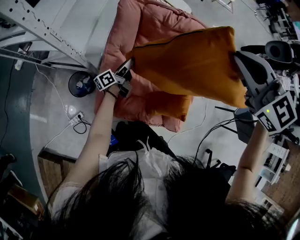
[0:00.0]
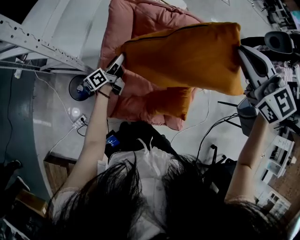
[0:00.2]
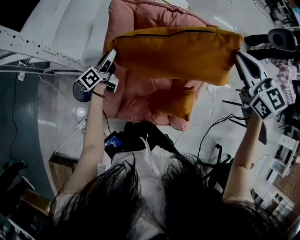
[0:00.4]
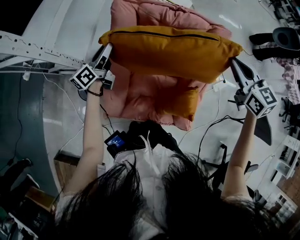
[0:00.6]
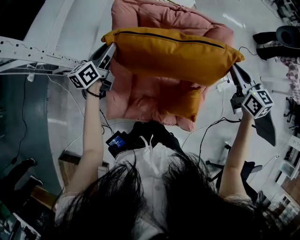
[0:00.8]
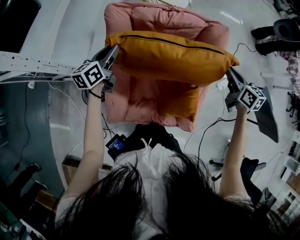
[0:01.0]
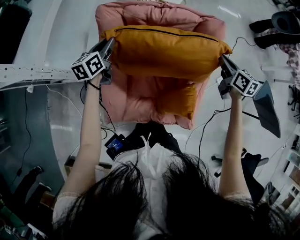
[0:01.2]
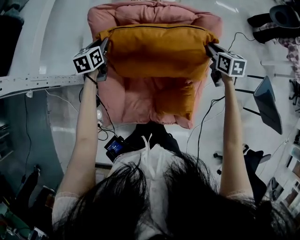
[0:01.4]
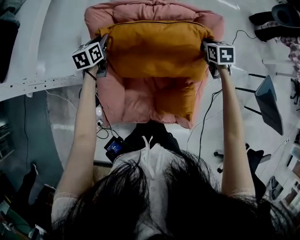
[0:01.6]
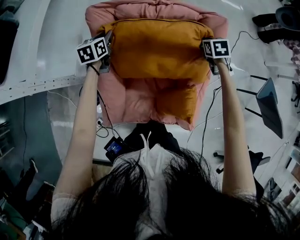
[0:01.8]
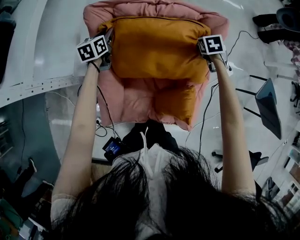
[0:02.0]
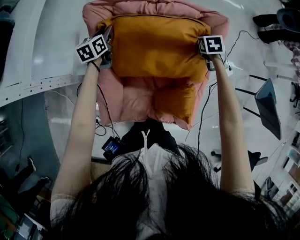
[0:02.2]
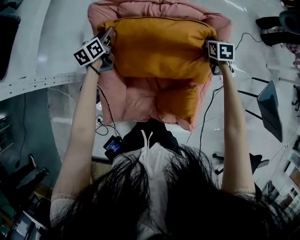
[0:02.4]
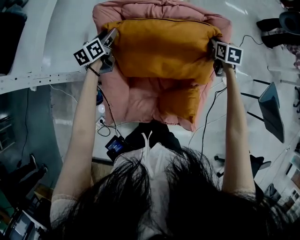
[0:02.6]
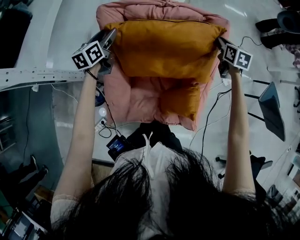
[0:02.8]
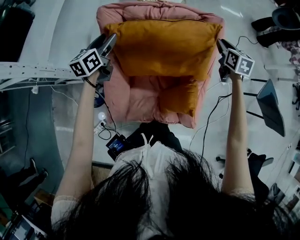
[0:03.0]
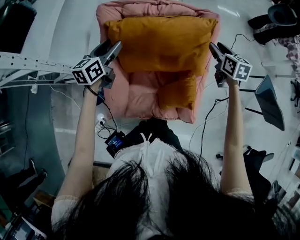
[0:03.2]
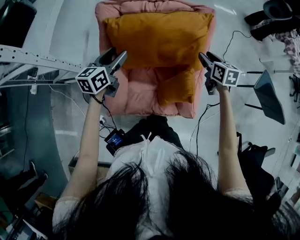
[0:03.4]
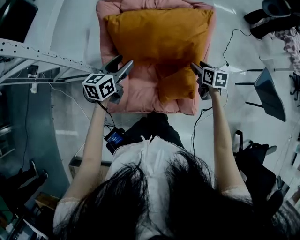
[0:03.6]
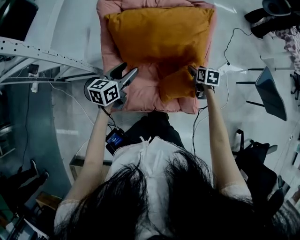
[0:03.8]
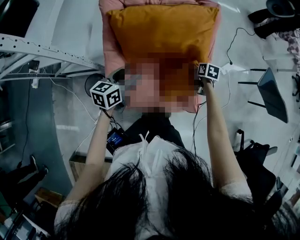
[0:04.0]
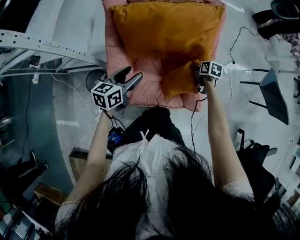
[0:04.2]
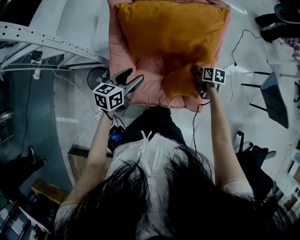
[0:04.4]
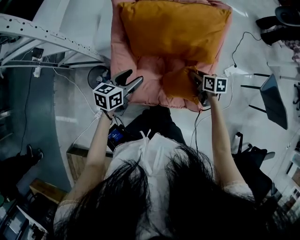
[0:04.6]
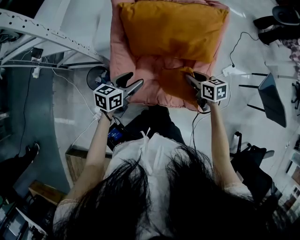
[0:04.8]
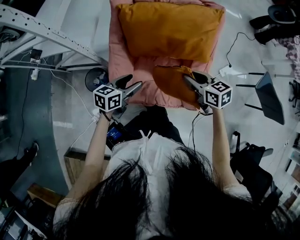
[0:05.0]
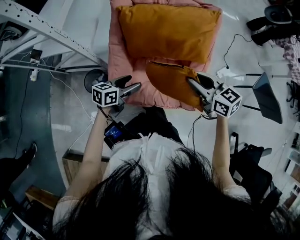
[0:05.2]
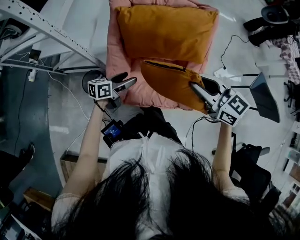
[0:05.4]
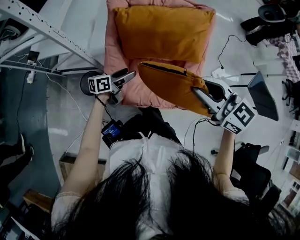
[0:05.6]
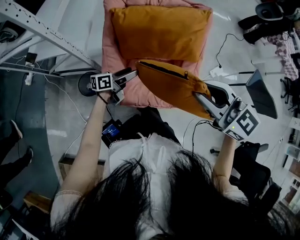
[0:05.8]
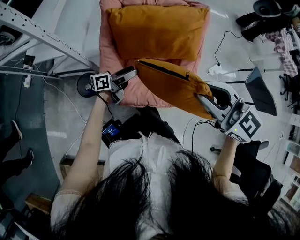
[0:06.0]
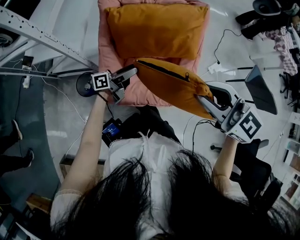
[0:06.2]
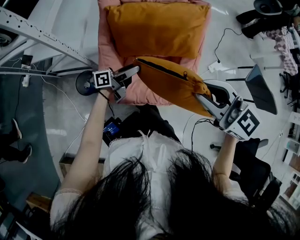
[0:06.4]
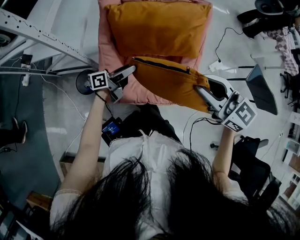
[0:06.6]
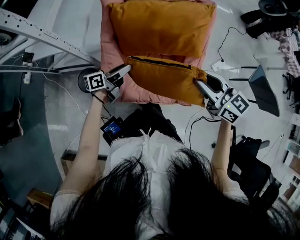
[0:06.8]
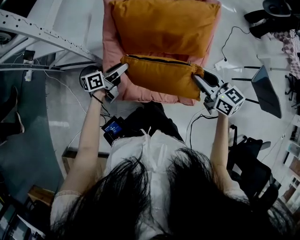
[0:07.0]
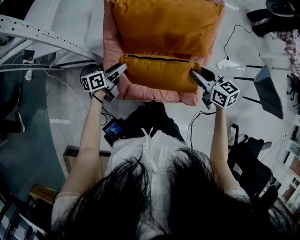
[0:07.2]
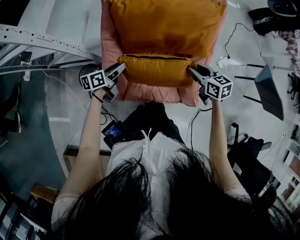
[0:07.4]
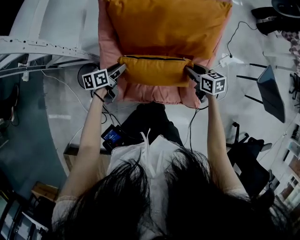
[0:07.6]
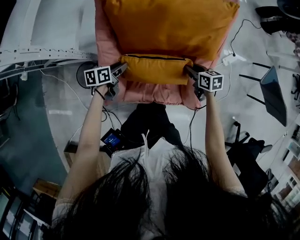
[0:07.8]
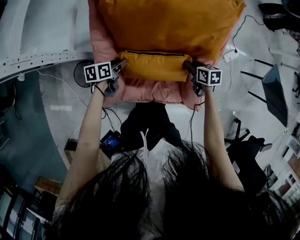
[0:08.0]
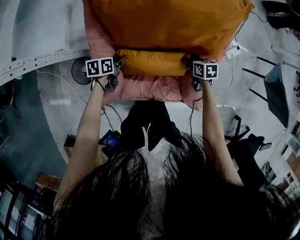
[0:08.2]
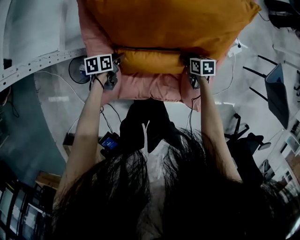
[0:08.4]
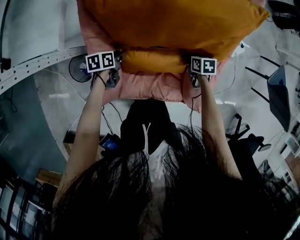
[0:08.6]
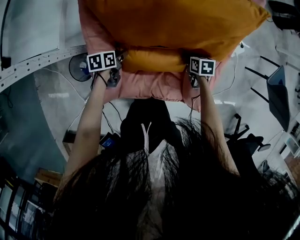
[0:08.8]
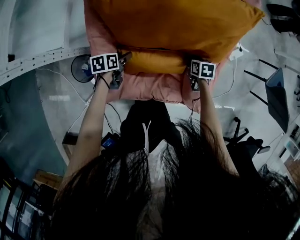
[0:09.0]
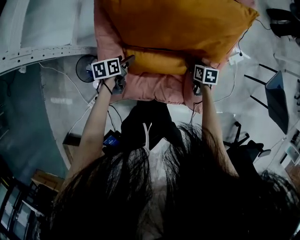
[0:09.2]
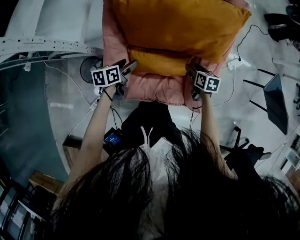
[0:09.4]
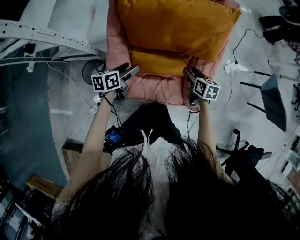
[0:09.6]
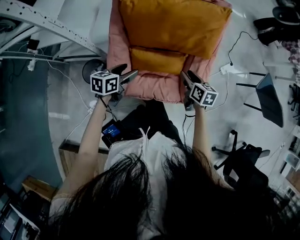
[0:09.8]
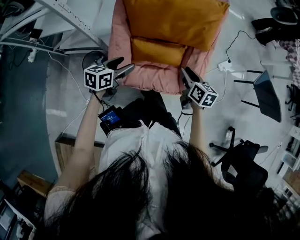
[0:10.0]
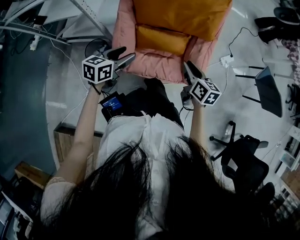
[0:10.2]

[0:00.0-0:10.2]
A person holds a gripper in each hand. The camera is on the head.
0:00.0 to 0:01.4: The right gripper goes approximately 40 cm downward and to the right, and rotates around the line of its fingers by approximately 50 degrees, clockwise from behind. The left gripper heads forward and upward, covering roughly 15 cm, and twists about 50 degrees clockwise, seen from behind.
0:01.4 to 0:03.0: The left gripper shifts approximately 5 cm upward, and opens up. Meanwhile the right gripper goes downward and returns, roughly 10 cm each way.
0:03.0 to 0:04.4: The right gripper goes approximately 30 cm backward and downward, rotates about 30 degrees, and opens, then closes again. The left gripper is displaced backward and to the right by approximately 25 cm, and swivels about 20 degrees.
0:04.4 to 0:05.8: The right gripper travels upward by approximately 40 cm, and points its fingers approximately 40 degrees further upward. The left gripper changes its angle by approximately 30 degrees.
0:05.8 to 0:07.2: The left gripper moves to the left, some 5 cm, and closes its fingers. Meanwhile the right gripper shifts about 25 cm downward and forward, and swivels approximately 30 degrees.
0:07.2 to 0:08.8: The left gripper heads downward and forward, covering approximately 20 cm, and angles its fingers downward, by roughly 30 degrees. Meanwhile the right gripper goes roughly 30 cm downward, and tilts its fingers some 30 degrees downward.
0:08.8 to 0:10.2: Both grippers move upward and backward, approximately 35 cm. The right gripper angles its fingers upward, by roughly 40 degrees, while the left gripper changes its angle by approximately 40 degrees.

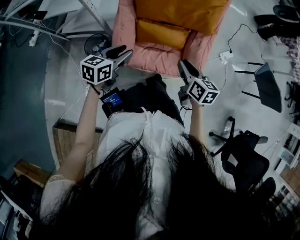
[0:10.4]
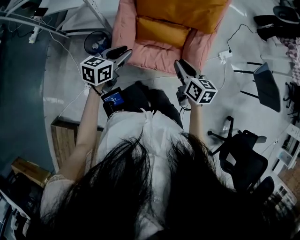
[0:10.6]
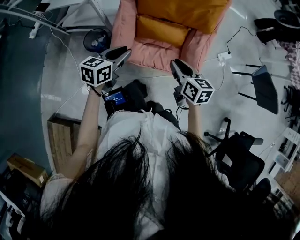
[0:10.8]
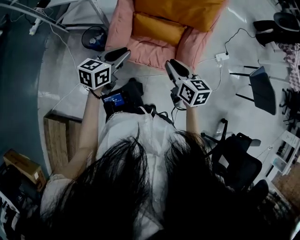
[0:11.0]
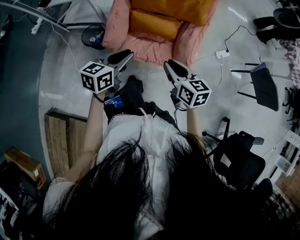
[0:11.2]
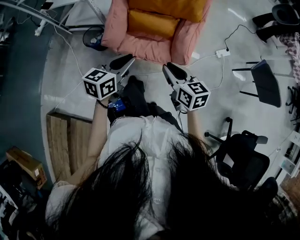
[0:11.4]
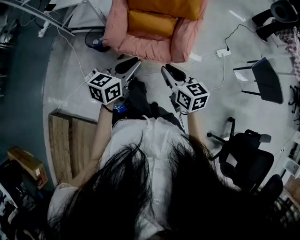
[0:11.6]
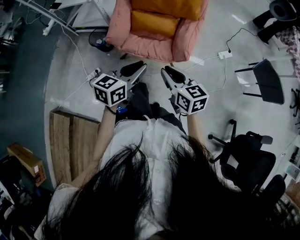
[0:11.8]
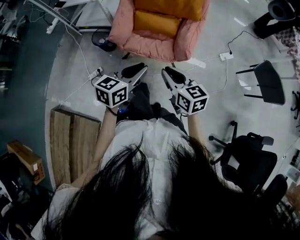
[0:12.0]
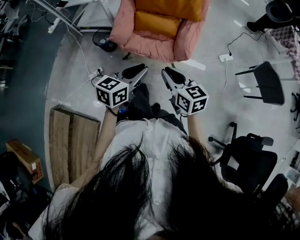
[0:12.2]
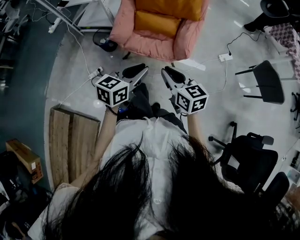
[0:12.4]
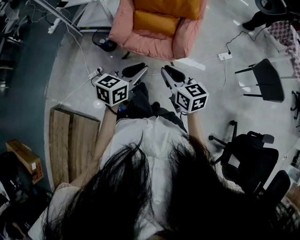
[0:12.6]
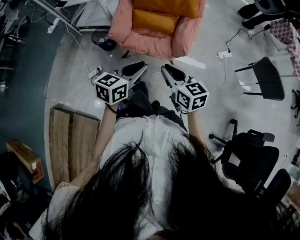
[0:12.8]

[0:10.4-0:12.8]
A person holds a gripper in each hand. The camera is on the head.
0:10.4 to 0:11.6: The left gripper travels backward and to the right by approximately 25 cm. Meanwhile the right gripper goes about 20 cm backward, and swivels approximately 20 degrees.
0:11.6 to 0:12.8: Both grippers travel together backward, about 10 cm.

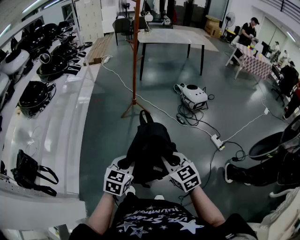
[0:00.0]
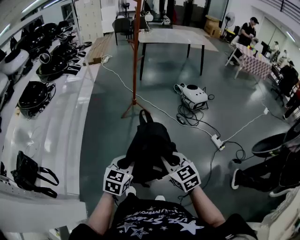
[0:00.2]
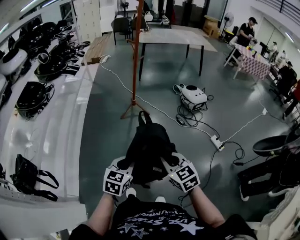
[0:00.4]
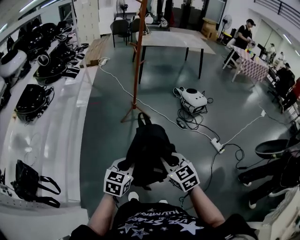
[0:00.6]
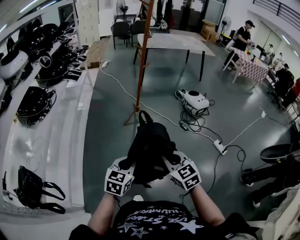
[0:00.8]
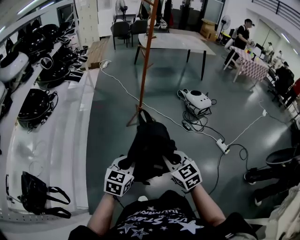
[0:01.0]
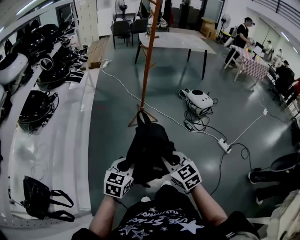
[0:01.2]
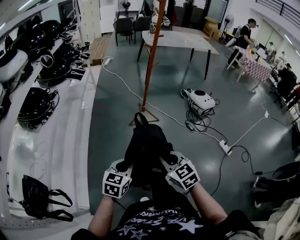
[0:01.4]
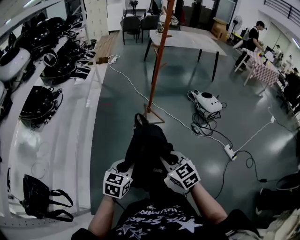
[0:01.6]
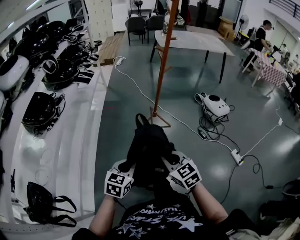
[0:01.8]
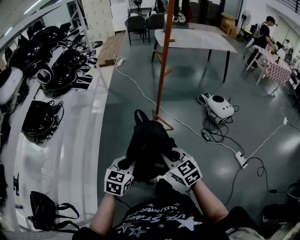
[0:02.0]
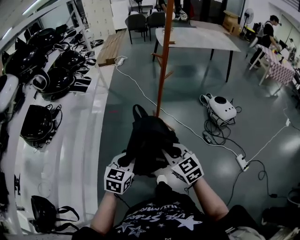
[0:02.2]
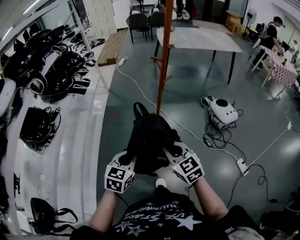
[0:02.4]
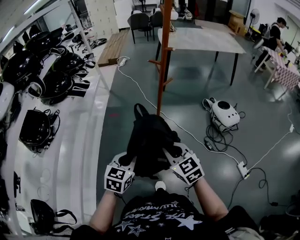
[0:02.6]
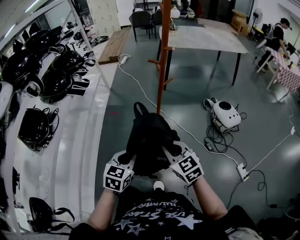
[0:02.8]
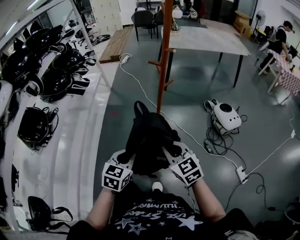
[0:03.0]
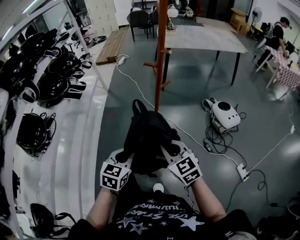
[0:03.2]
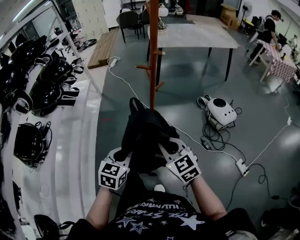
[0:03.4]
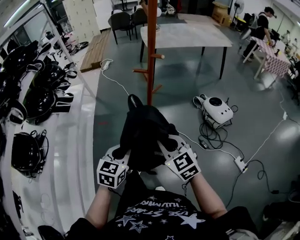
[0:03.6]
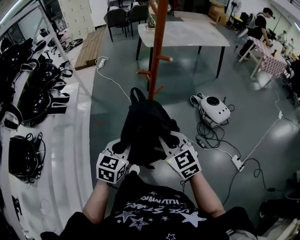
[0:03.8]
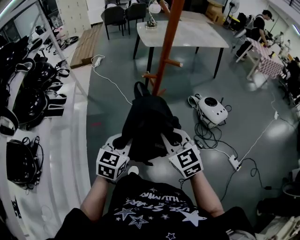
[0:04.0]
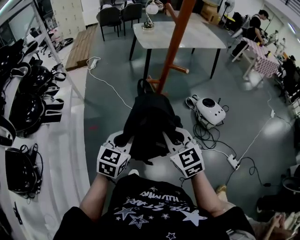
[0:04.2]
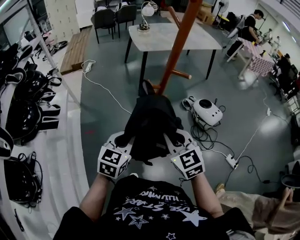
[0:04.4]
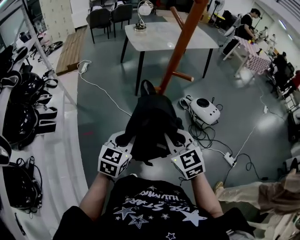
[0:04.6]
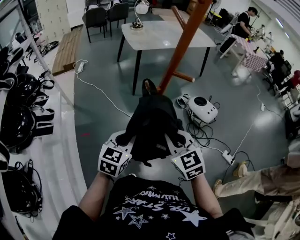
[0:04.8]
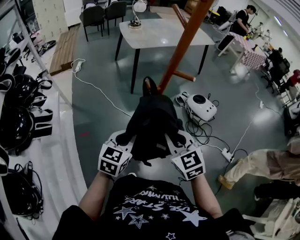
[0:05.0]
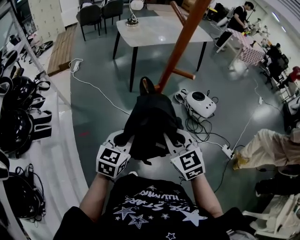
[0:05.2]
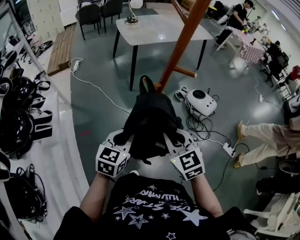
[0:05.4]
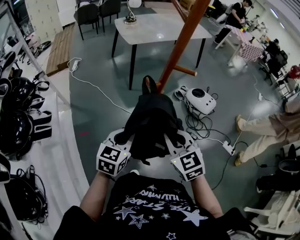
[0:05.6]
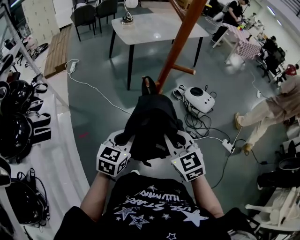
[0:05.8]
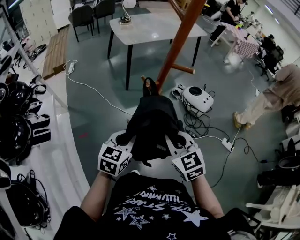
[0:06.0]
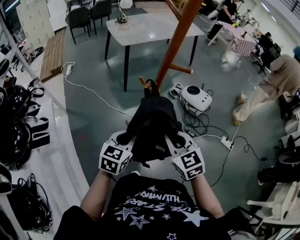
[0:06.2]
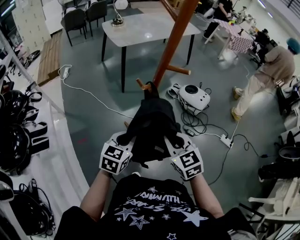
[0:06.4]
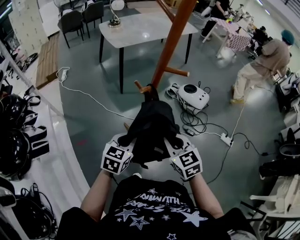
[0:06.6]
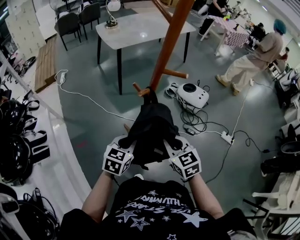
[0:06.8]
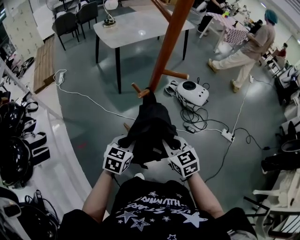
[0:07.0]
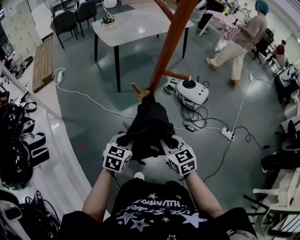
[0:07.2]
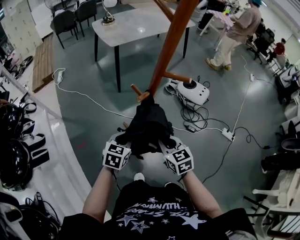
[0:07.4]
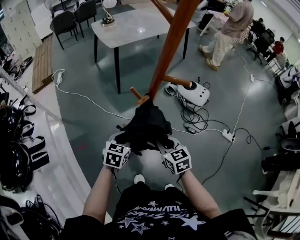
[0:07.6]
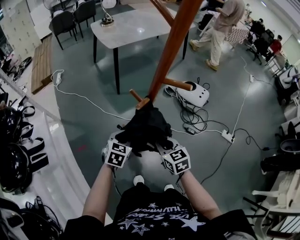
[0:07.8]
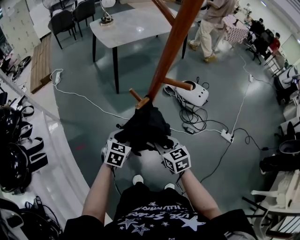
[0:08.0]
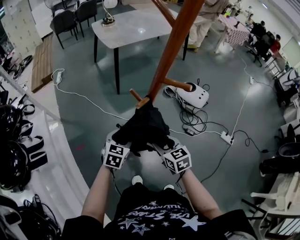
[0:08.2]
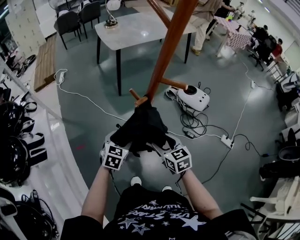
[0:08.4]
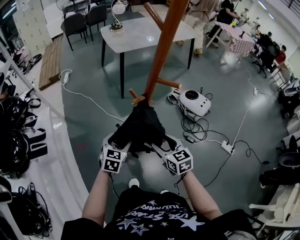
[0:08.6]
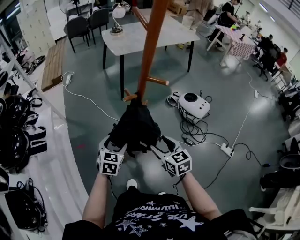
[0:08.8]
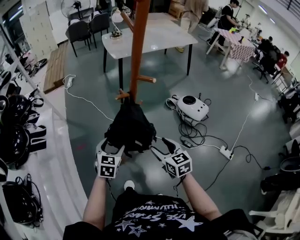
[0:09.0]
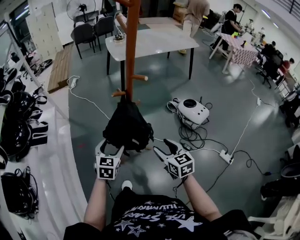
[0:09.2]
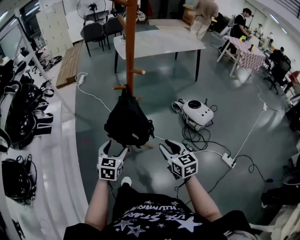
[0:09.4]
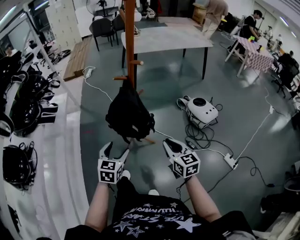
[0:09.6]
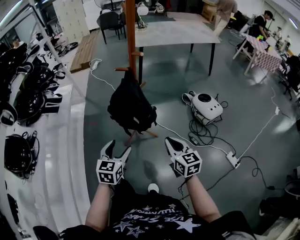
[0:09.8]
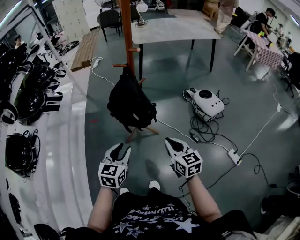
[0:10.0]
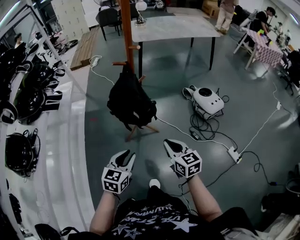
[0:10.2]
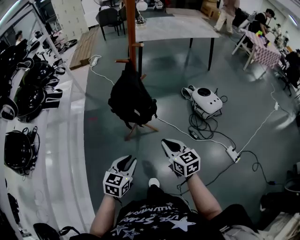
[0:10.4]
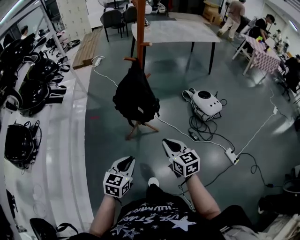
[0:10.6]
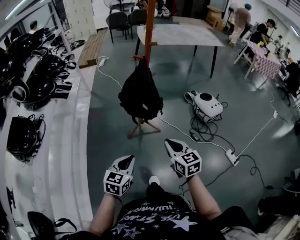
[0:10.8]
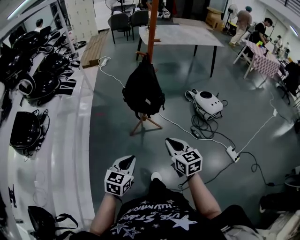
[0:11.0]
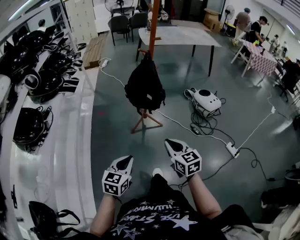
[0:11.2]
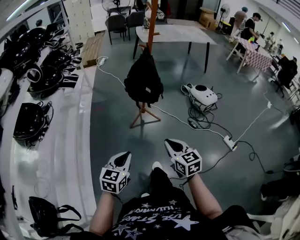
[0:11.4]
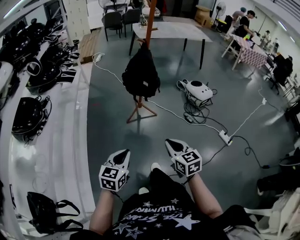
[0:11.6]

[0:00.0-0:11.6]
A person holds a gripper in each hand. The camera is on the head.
0:00.0 to 0:01.4: Both grippers travel together to the left and forward, about 25 cm.
0:01.4 to 0:02.8: The two grippers go approximately 35 cm forward.
0:02.8 to 0:04.4: The grippers both shift forward by some 25 cm. The right gripper turns by about 20 degrees; the left gripper rotates roughly 20 degrees.
0:04.4 to 0:05.8: The grippers move only a little.
0:05.8 to 0:07.2: The left gripper heads downward and forward, covering roughly 10 cm. Meanwhile the right gripper moves downward, approximately 10 cm.
0:07.2 to 0:08.8: The left gripper opens up, while the right gripper opens up.
0:08.8 to 0:10.2: The grippers both shift backward and to the right by roughly 25 cm. The right gripper closes up. The left gripper closes up.
0:10.2 to 0:11.6: The grippers both shift backward by about 35 cm.
